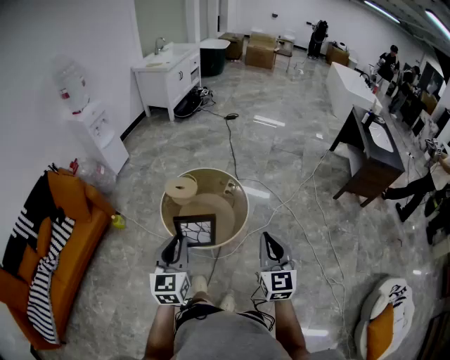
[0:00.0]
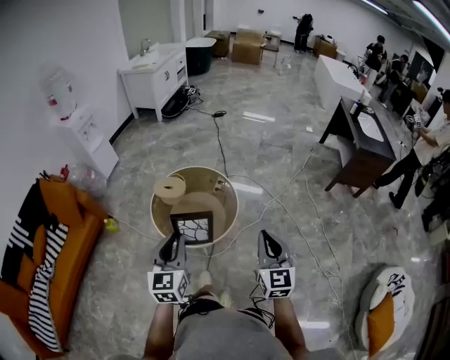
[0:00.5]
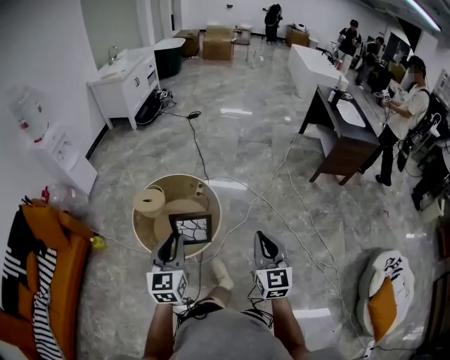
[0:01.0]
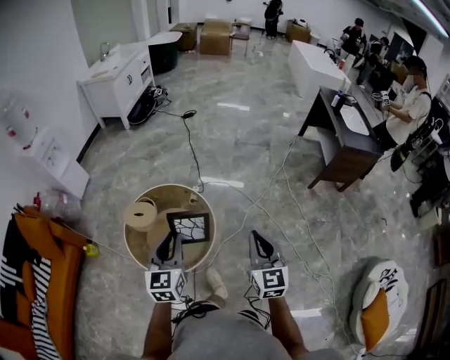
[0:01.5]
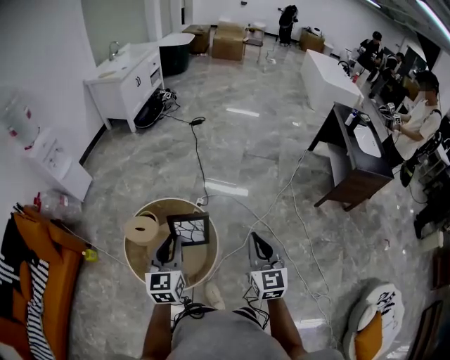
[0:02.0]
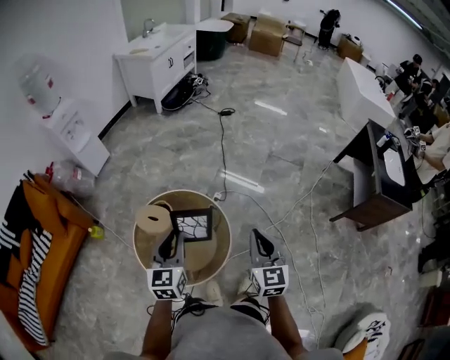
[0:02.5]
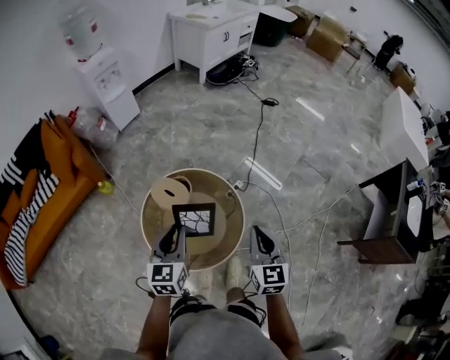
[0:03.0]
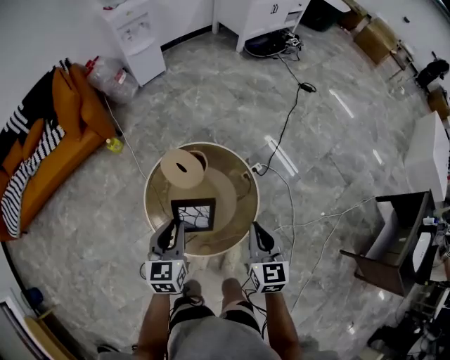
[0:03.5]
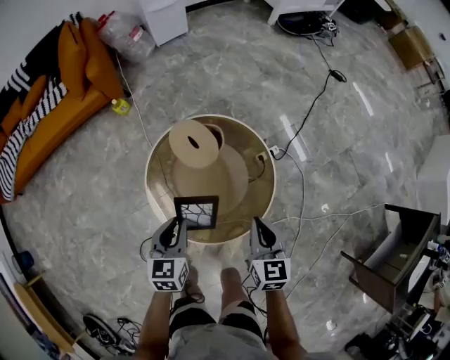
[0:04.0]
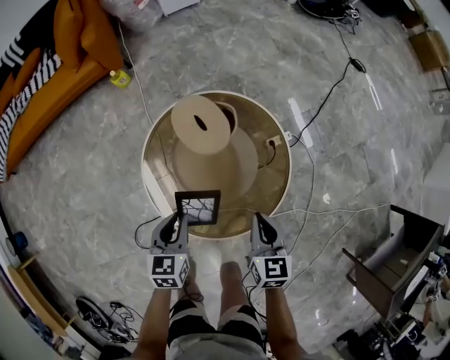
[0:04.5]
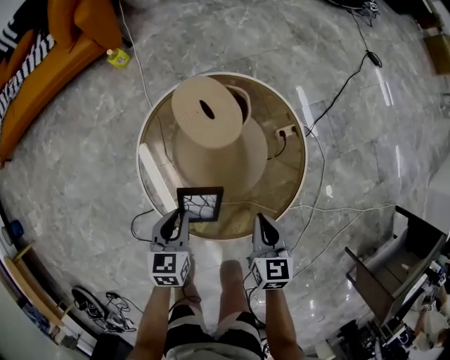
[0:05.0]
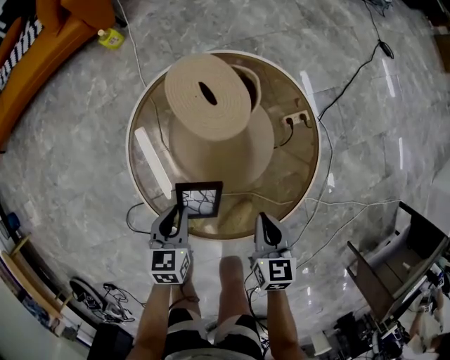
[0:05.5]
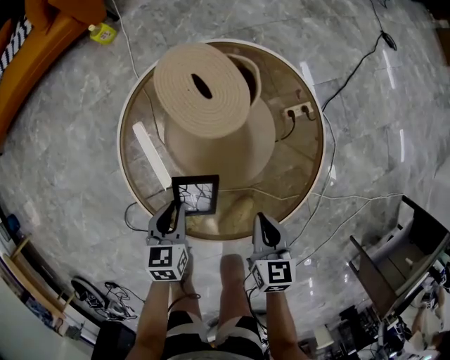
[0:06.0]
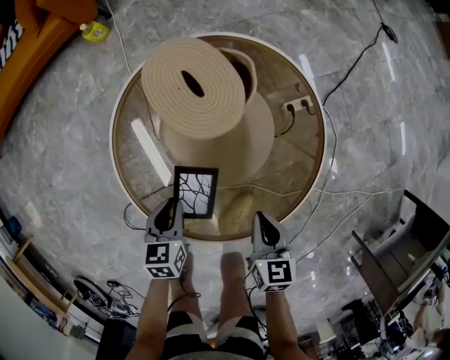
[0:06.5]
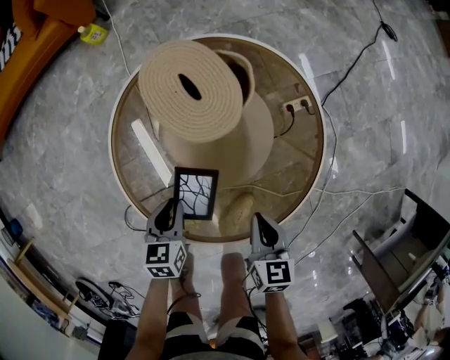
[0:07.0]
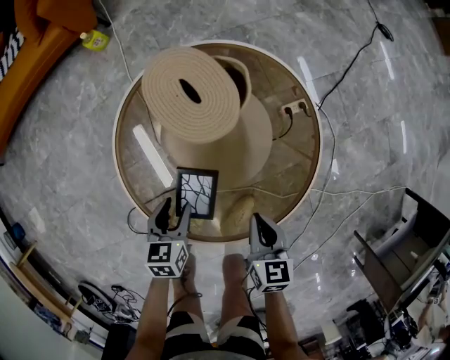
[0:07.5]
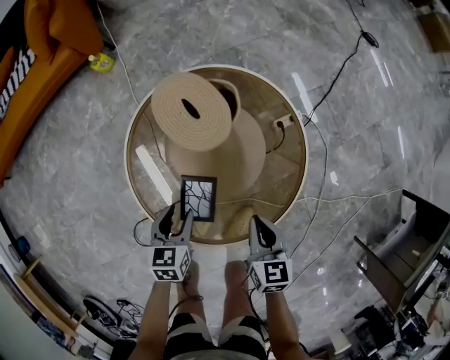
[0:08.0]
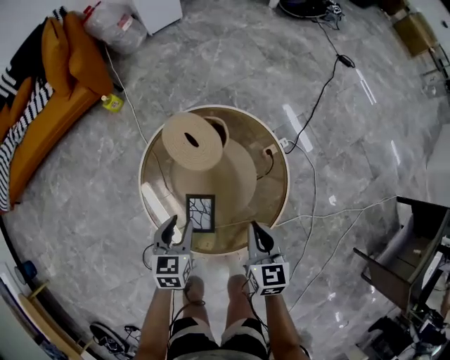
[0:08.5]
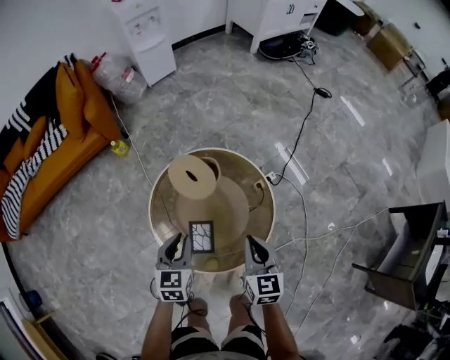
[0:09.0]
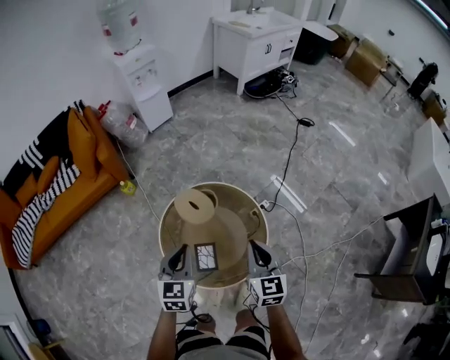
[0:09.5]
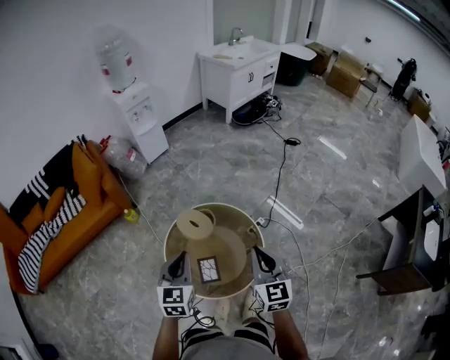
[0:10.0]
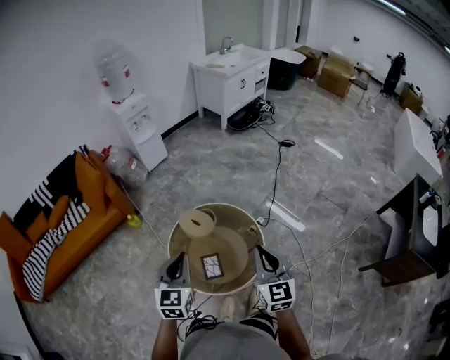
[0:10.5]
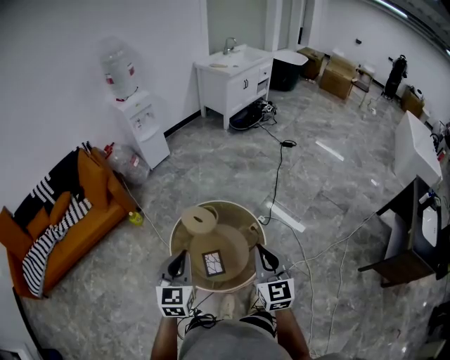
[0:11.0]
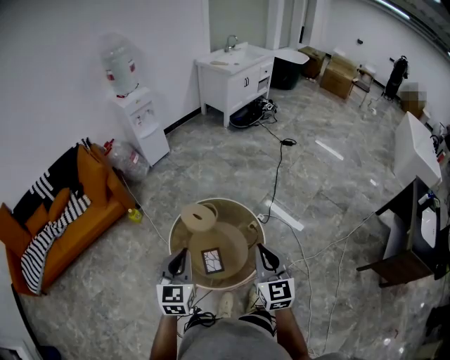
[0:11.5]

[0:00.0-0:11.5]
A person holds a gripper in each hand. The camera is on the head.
0:00.0 to 0:02.0: The two grippers go approximately 35 cm forward.
0:02.0 to 0:04.0: The left gripper heads downward, covering roughly 30 cm, and swivels some 50 degrees. Meanwhile the right gripper ends up roughly 40 cm from where it was, and turns by some 50 degrees.
0:04.0 to 0:06.0: Both grippers move downward, some 30 cm.
0:06.0 to 0:07.5: The left gripper opens its fingers.
0:07.5 to 0:09.5: The two grippers go about 50 cm upward. The left gripper rotates roughly 40 degrees, and closes up. The right gripper turns by some 30 degrees.
0:09.5 to 0:11.5: The two grippers go roughly 20 cm upward and backward.

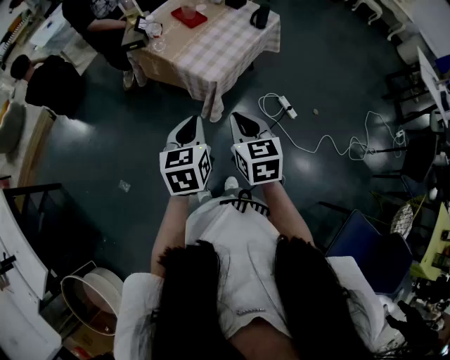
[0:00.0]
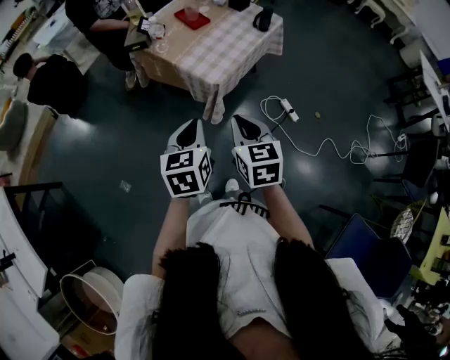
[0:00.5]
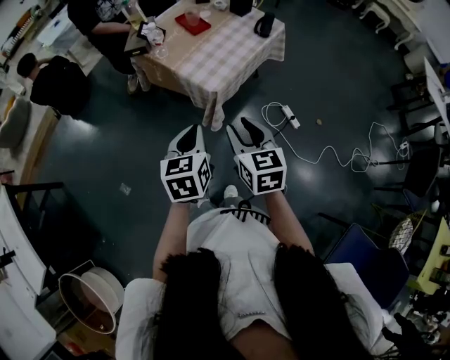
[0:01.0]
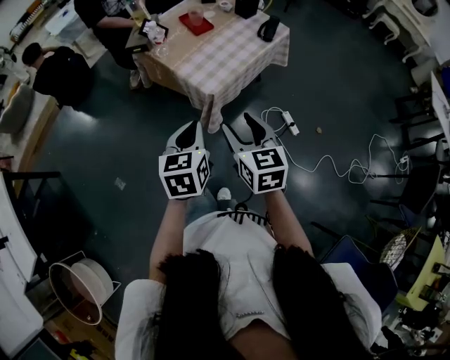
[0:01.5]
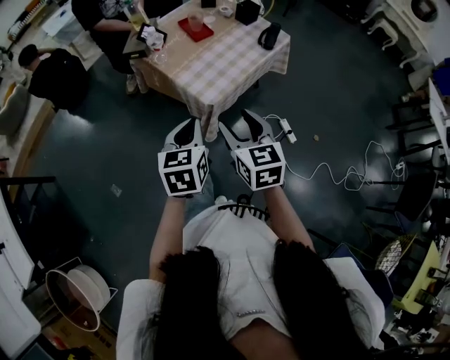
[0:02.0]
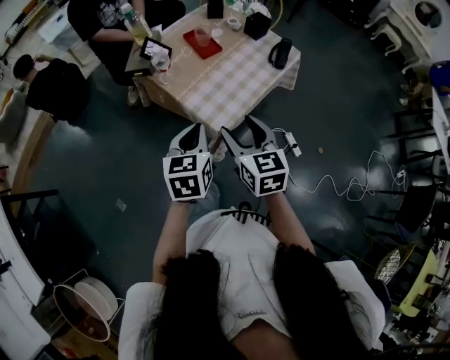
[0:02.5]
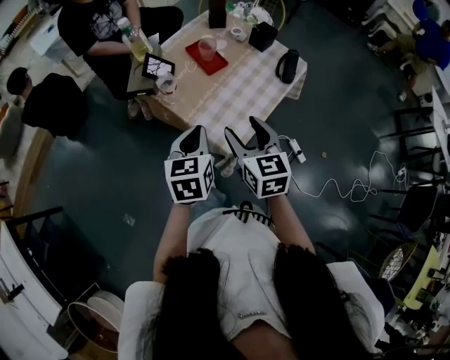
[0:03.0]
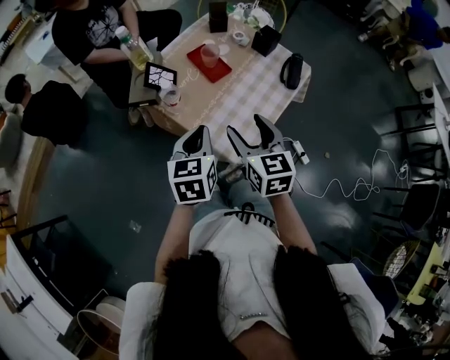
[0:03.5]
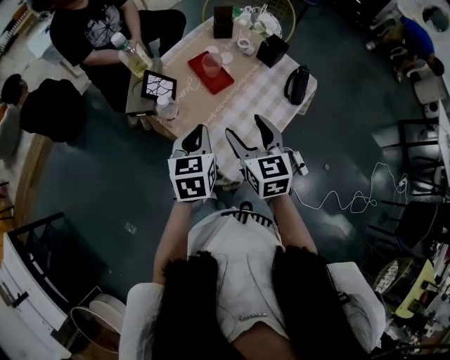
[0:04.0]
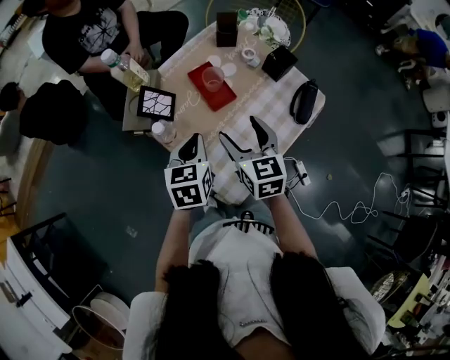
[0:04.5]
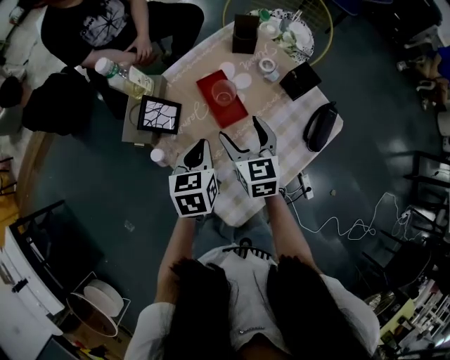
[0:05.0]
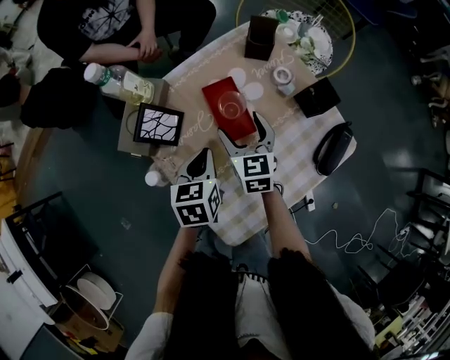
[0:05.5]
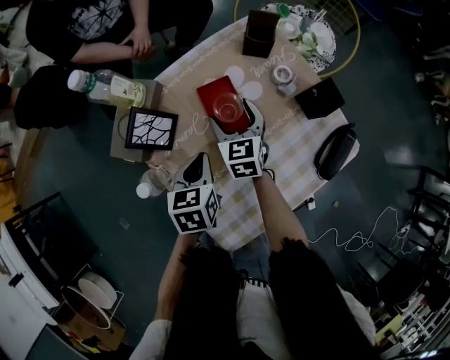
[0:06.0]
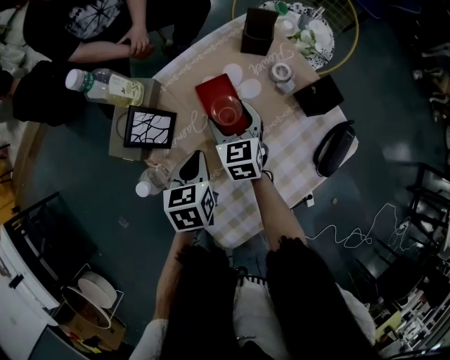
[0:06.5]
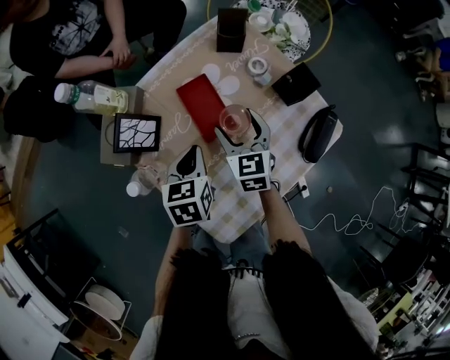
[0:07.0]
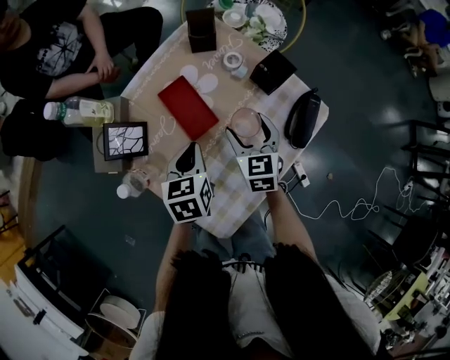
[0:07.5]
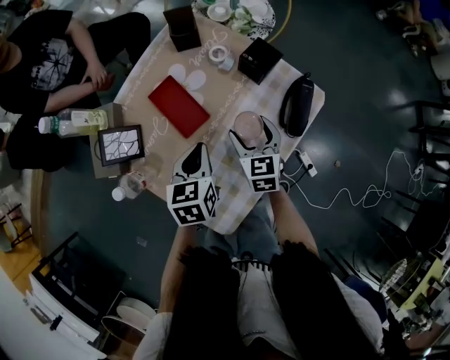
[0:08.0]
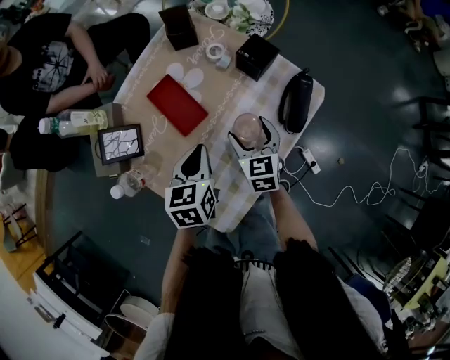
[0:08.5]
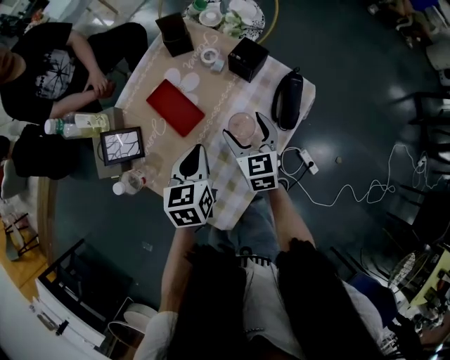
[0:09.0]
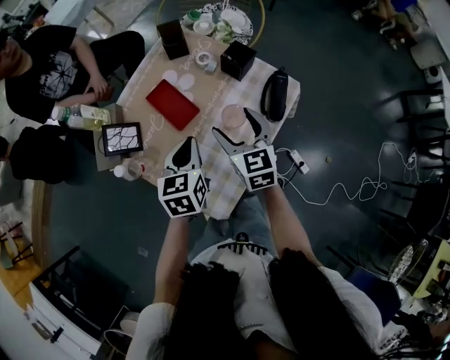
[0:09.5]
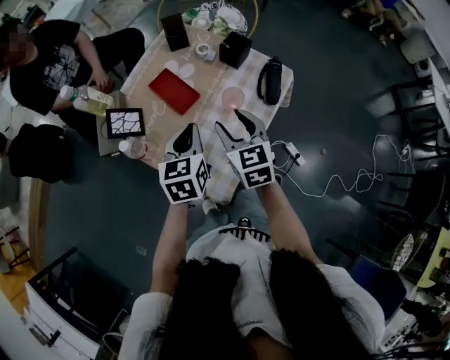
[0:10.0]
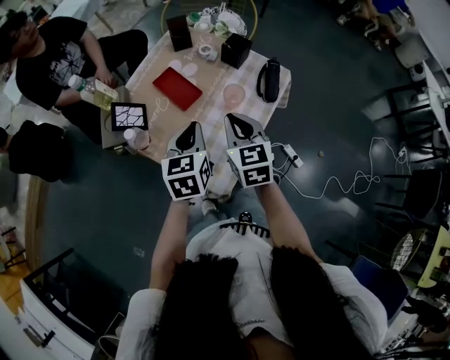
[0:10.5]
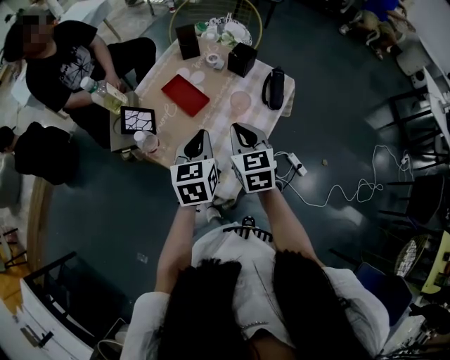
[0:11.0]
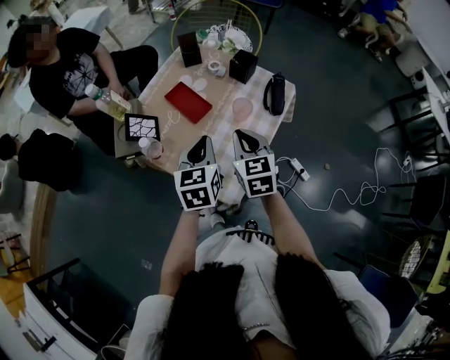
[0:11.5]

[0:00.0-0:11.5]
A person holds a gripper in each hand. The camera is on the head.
0:00.0 to 0:02.0: Both grippers travel together forward, about 10 cm. The right gripper opens.
0:02.0 to 0:04.0: The grippers both shift forward by about 30 cm.
0:04.0 to 0:06.0: The right gripper goes about 35 cm forward and downward; the left gripper travels forward and downward by some 20 cm, and turns by about 20 degrees.
0:06.0 to 0:07.5: The right gripper moves to the right and backward, approximately 15 cm. The left gripper heads to the right, covering about 5 cm.
0:07.5 to 0:09.5: The right gripper moves upward and backward, about 10 cm, while the left gripper shifts some 5 cm upward.
0:09.5 to 0:11.5: The left gripper is displaced backward and upward by approximately 10 cm. The right gripper goes some 10 cm backward, and closes.

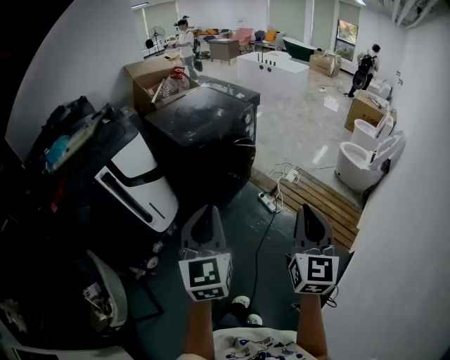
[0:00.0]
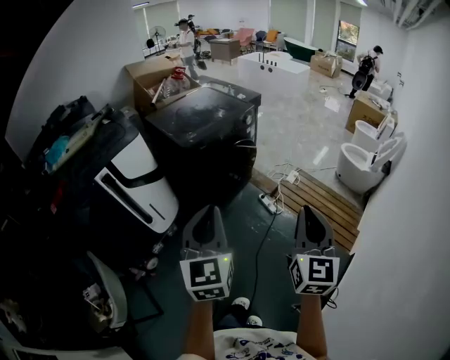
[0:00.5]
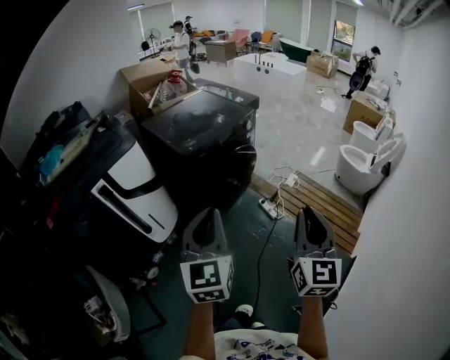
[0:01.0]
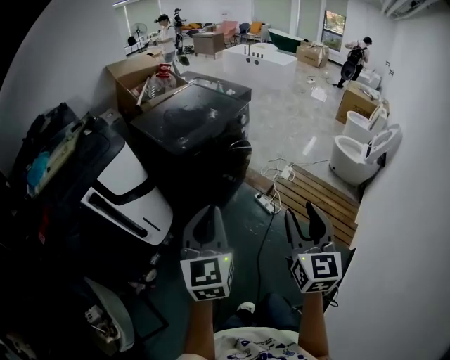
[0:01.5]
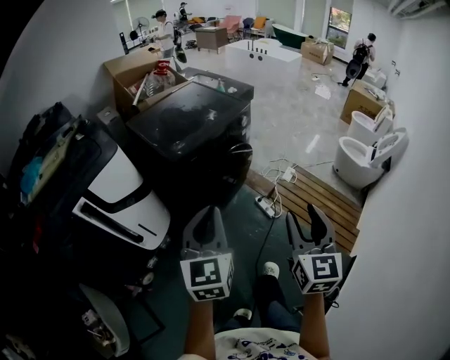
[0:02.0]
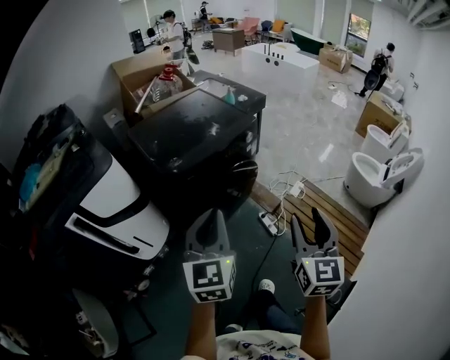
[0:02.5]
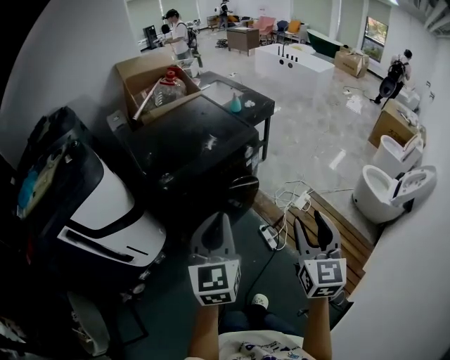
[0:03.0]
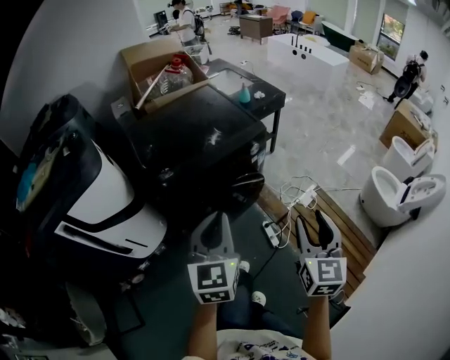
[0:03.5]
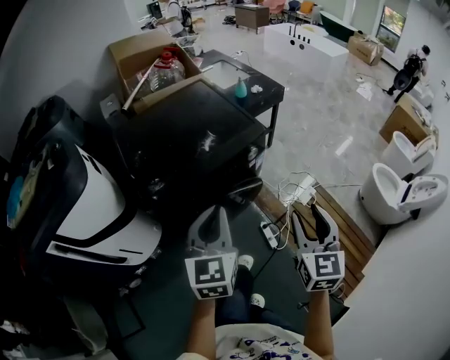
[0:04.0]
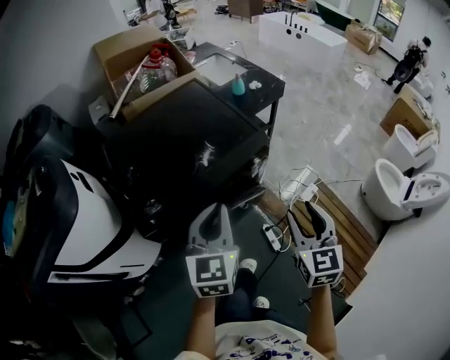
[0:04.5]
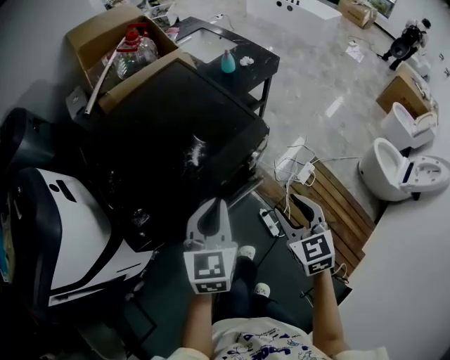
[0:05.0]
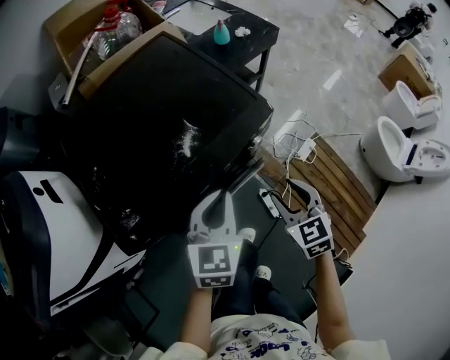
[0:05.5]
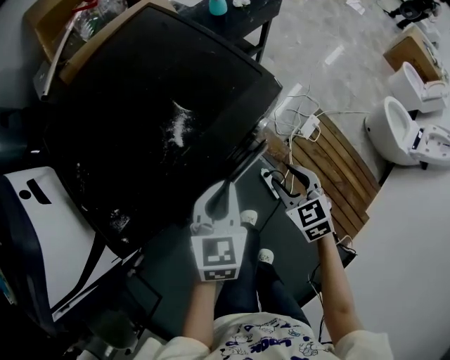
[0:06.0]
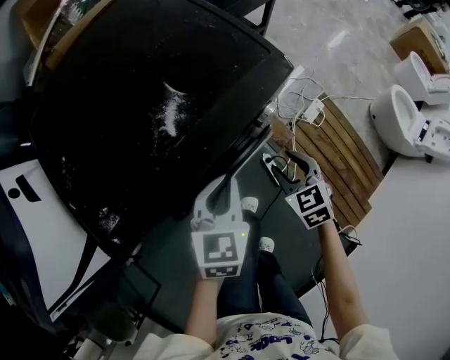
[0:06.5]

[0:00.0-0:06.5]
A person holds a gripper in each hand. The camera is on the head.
0:00.0 to 0:02.0: The two grippers go some 15 cm forward. The right gripper opens.
0:02.0 to 0:04.5: The pair of grippers is taken forward, about 50 cm. The right gripper turns by about 20 degrees.
0:04.5 to 0:06.5: Both grippers move downward, roughly 25 cm. The right gripper rotates some 30 degrees, while the left gripper swivels some 30 degrees.
